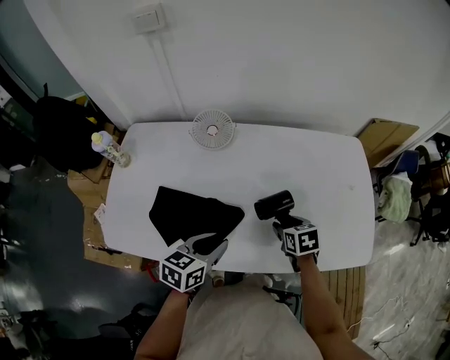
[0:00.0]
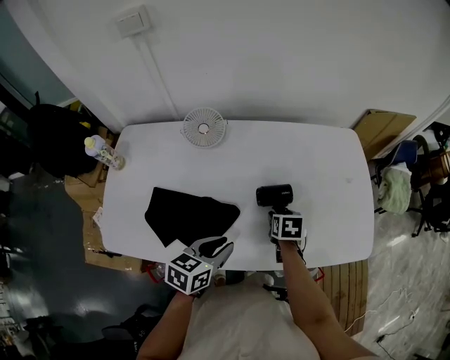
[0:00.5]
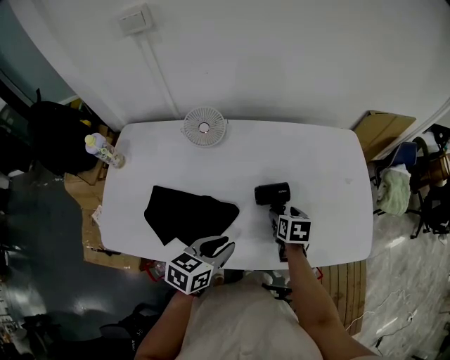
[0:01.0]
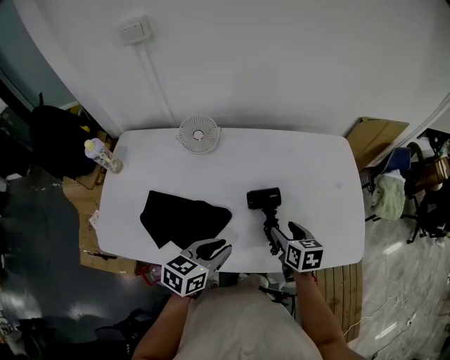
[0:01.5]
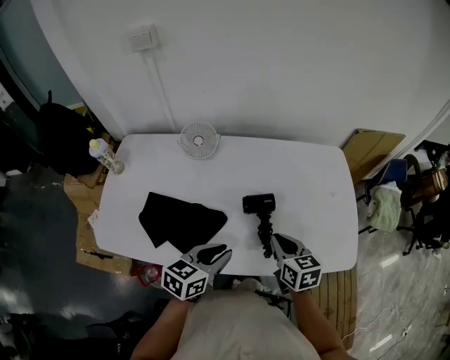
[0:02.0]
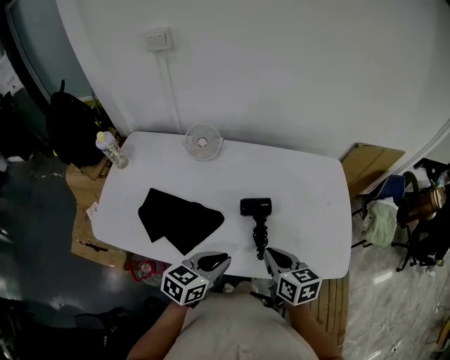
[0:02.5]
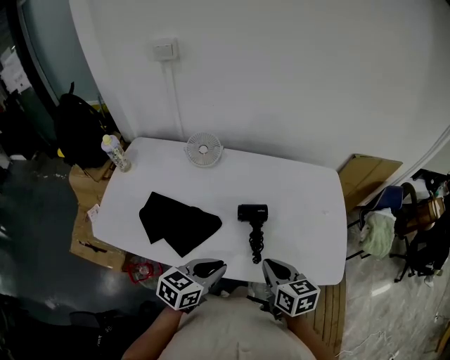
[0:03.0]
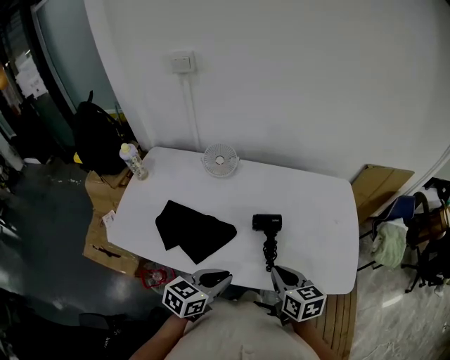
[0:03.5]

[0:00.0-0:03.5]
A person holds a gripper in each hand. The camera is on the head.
0:00.0 to 0:02.0: The right gripper travels upward by some 10 cm, turns by some 20 degrees, and closes up. The left gripper is displaced to the right by approximately 10 cm.
0:02.0 to 0:03.5: The two grippers go approximately 5 cm backward.

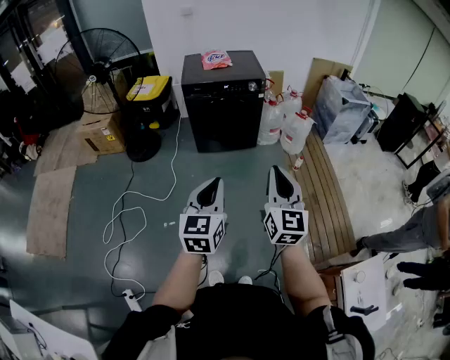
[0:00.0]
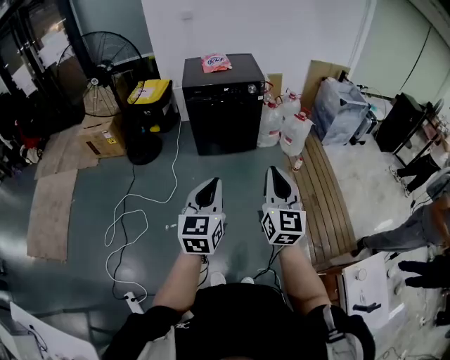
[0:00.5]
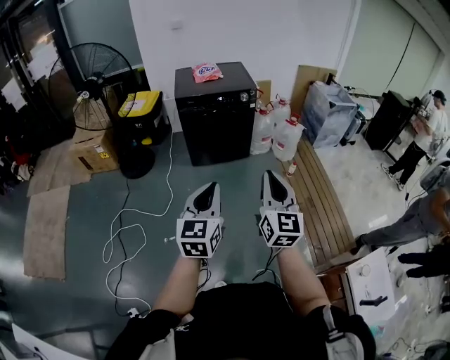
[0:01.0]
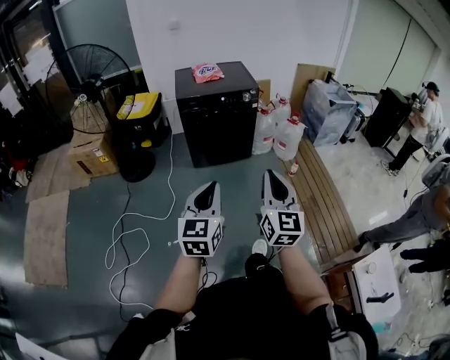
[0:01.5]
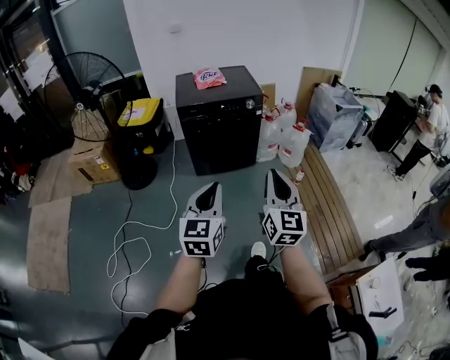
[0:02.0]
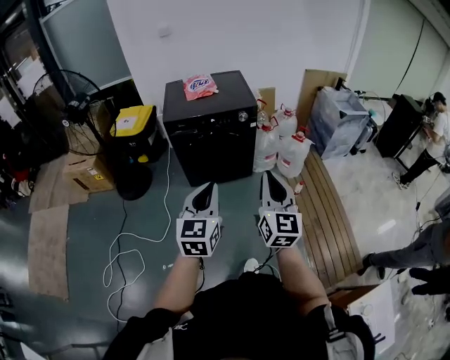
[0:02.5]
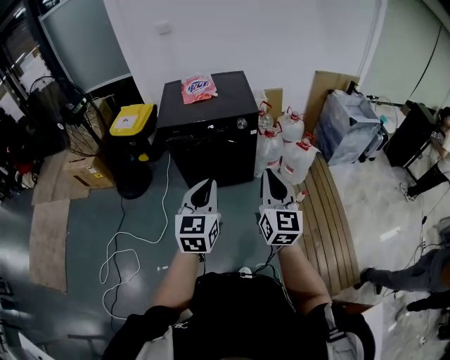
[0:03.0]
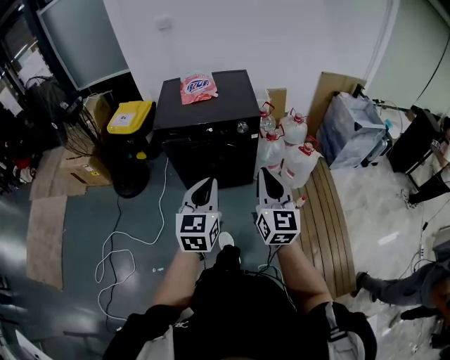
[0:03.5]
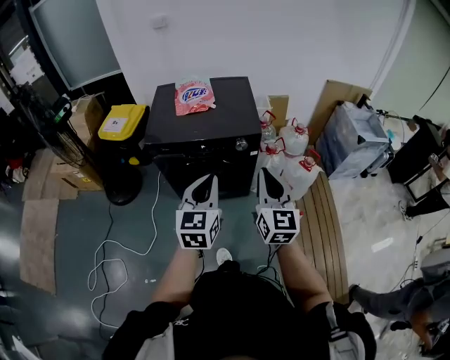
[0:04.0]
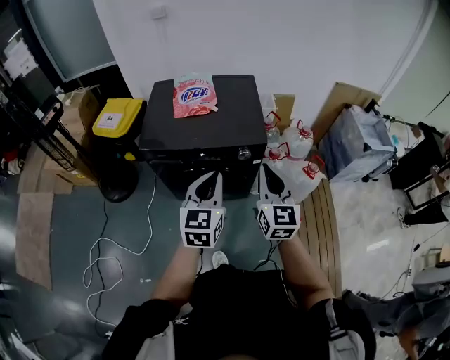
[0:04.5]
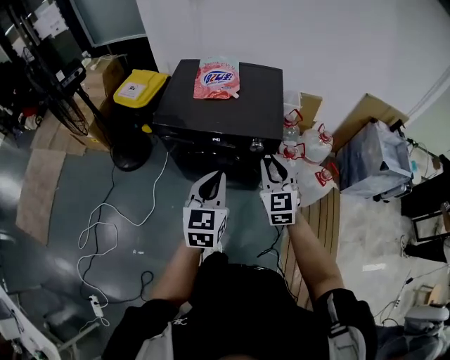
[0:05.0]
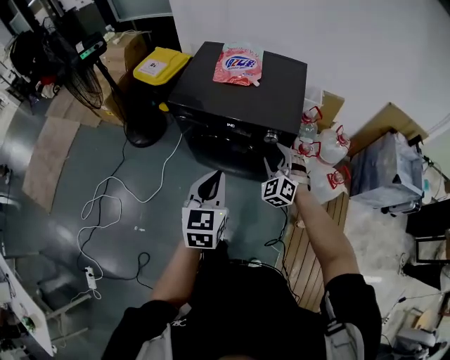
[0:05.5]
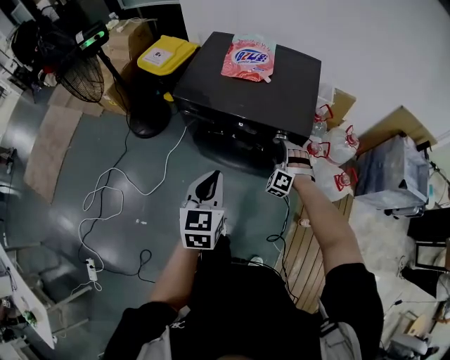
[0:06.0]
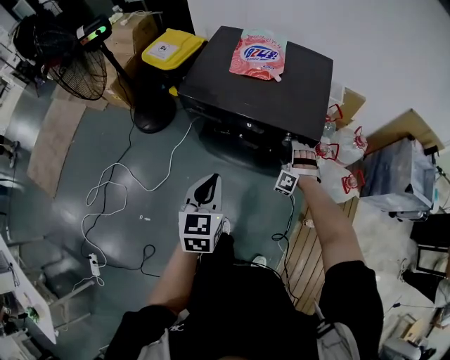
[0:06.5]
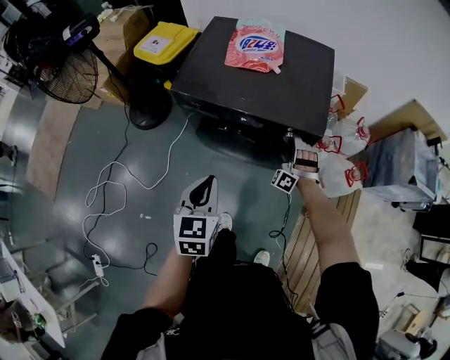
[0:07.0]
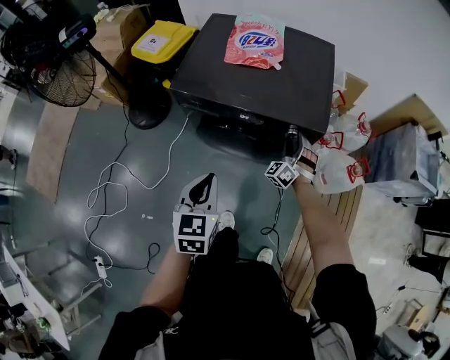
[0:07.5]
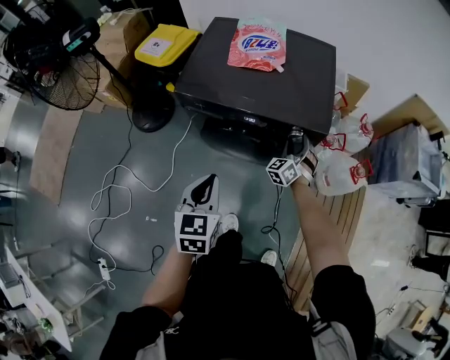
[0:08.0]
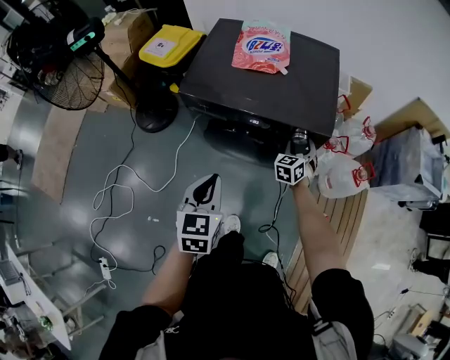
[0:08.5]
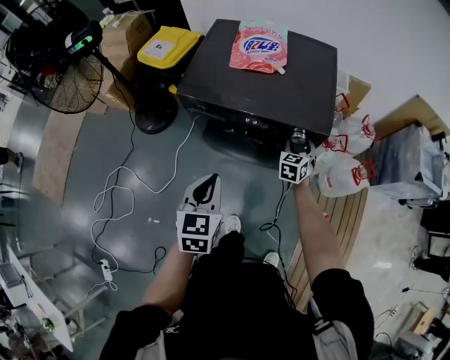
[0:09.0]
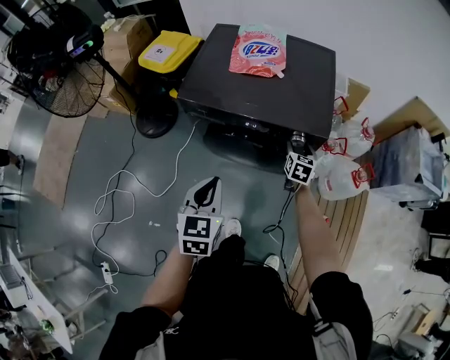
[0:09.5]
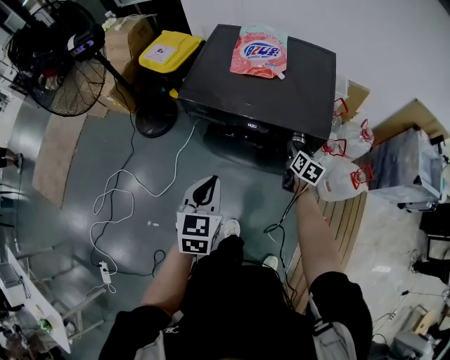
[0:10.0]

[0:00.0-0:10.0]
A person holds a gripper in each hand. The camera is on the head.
0:00.0 to 0:02.0: The grippers both shift forward and to the left by roughly 10 cm.
0:02.0 to 0:04.0: The two grippers travel together, forward, about 50 cm.
0:04.0 to 0:06.0: The left gripper shifts roughly 10 cm downward and forward, and rotates about 20 degrees; the right gripper shifts about 40 cm downward and forward, rolls counterclockwise, seen from behind, by some 90 degrees, and opens up.
0:06.0 to 0:08.0: The right gripper goes roughly 5 cm forward, and rotates around the line of its fingers by about 40 degrees, clockwise from behind. The left gripper goes some 5 cm to the left.
0:08.0 to 0:10.0: The right gripper twists roughly 70 degrees clockwise, seen from behind.

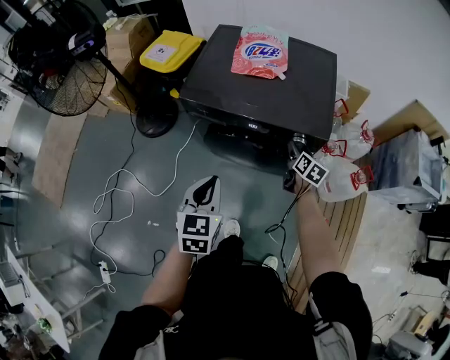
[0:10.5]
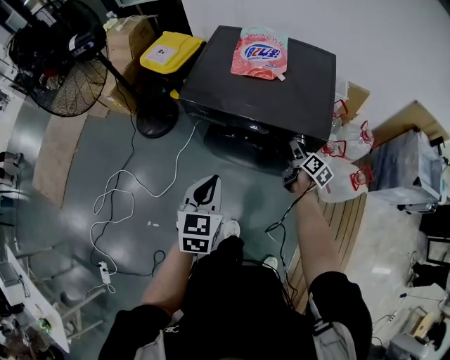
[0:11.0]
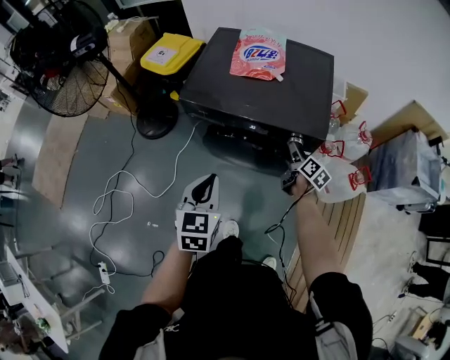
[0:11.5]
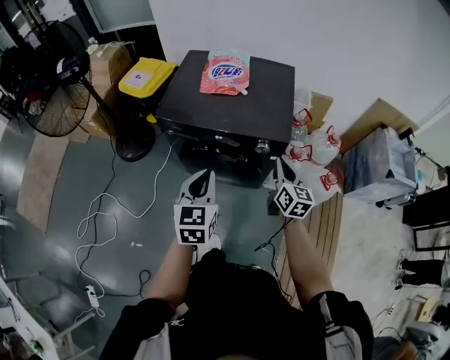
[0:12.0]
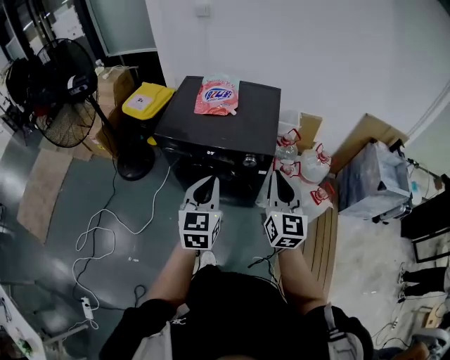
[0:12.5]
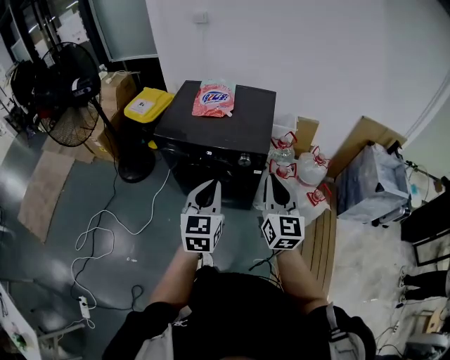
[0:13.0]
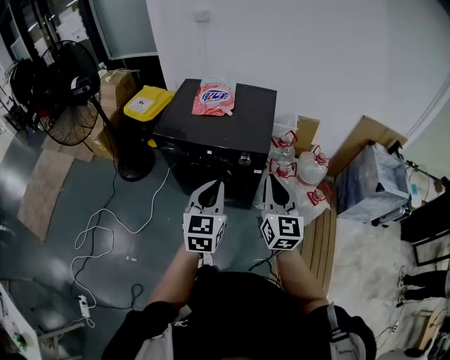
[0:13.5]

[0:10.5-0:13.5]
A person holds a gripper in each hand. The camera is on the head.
0:10.5 to 0:12.0: The right gripper travels upward and backward by about 20 cm, rotates roughly 20 degrees, and closes. The left gripper is displaced to the right and upward by approximately 10 cm.
0:12.0 to 0:13.5: The left gripper travels to the right, backward and upward by approximately 15 cm; the right gripper shifts approximately 20 cm upward and backward, and changes its angle by some 20 degrees.

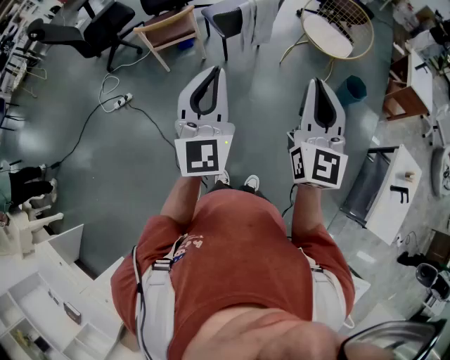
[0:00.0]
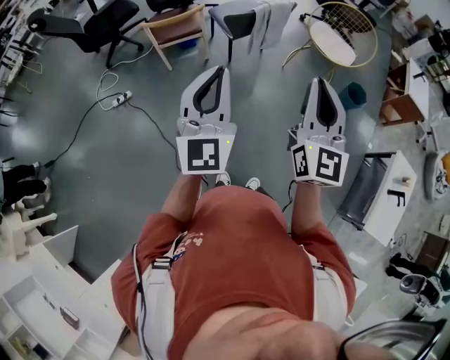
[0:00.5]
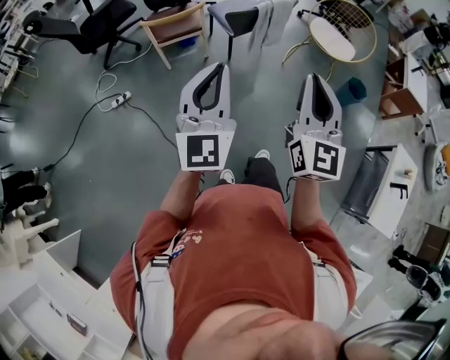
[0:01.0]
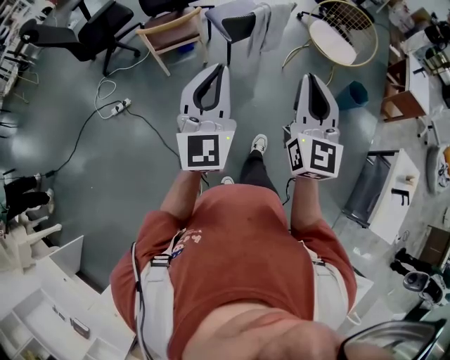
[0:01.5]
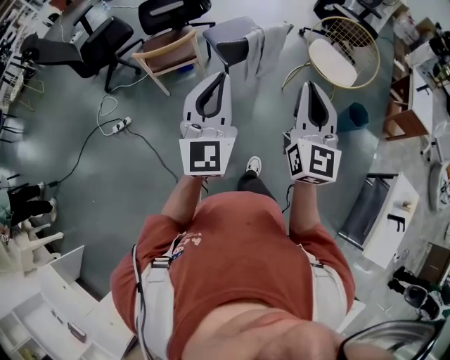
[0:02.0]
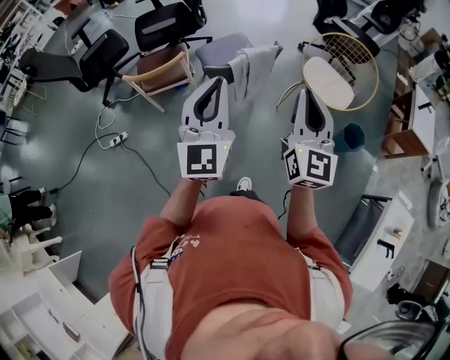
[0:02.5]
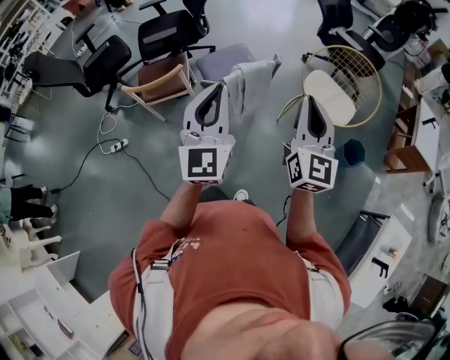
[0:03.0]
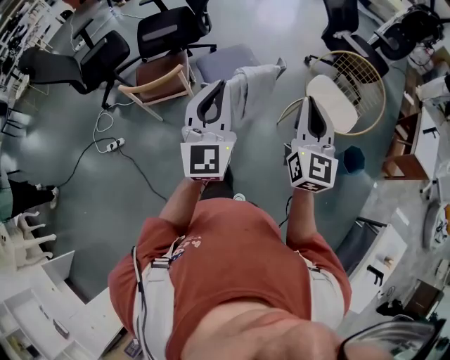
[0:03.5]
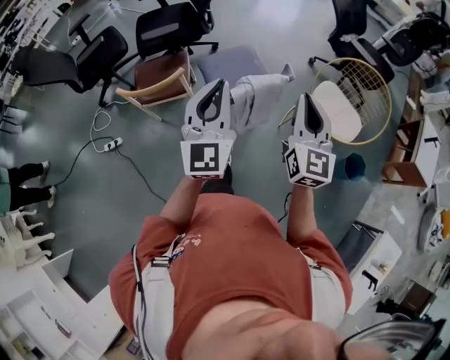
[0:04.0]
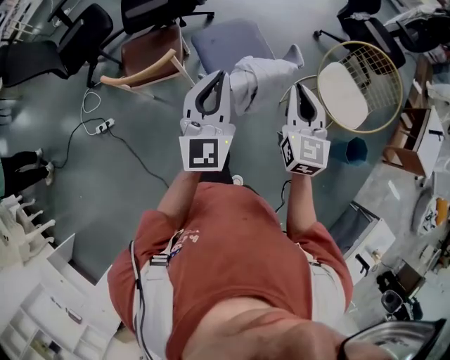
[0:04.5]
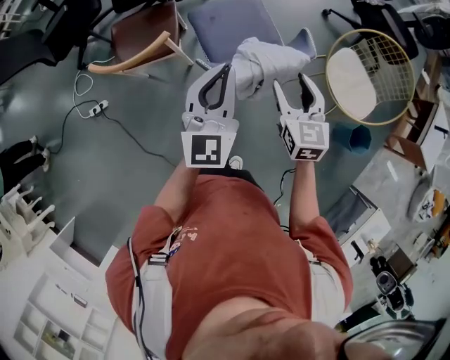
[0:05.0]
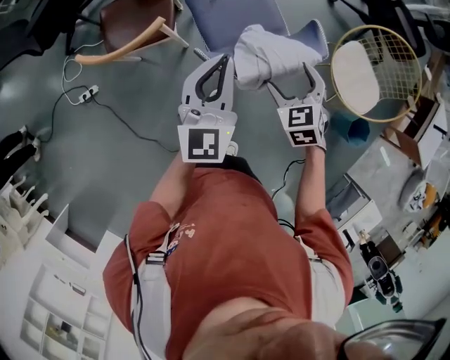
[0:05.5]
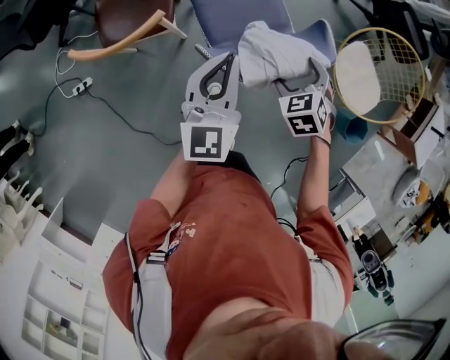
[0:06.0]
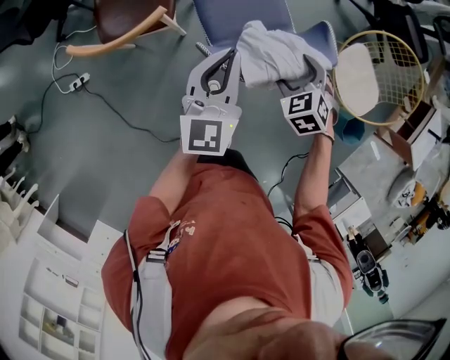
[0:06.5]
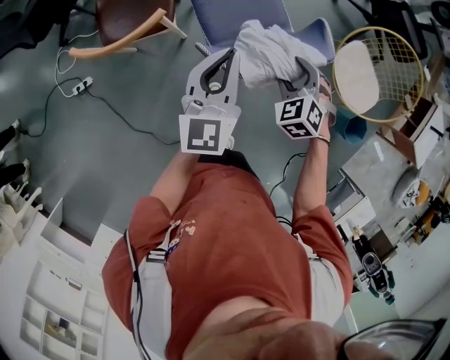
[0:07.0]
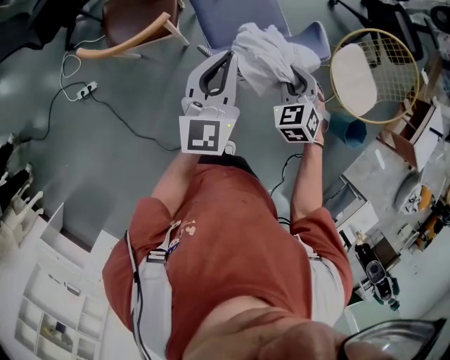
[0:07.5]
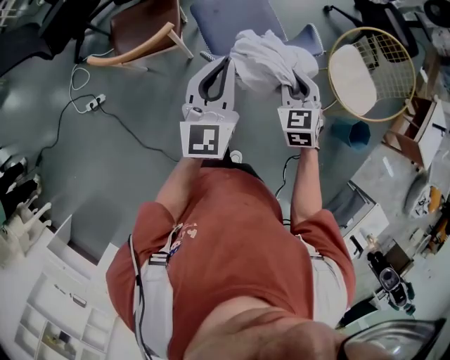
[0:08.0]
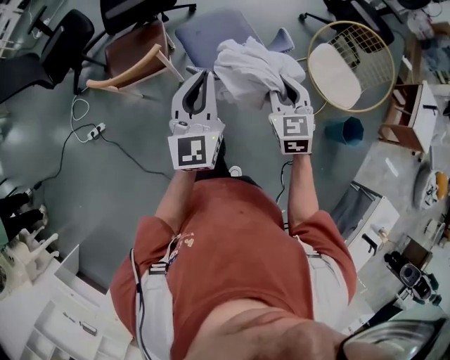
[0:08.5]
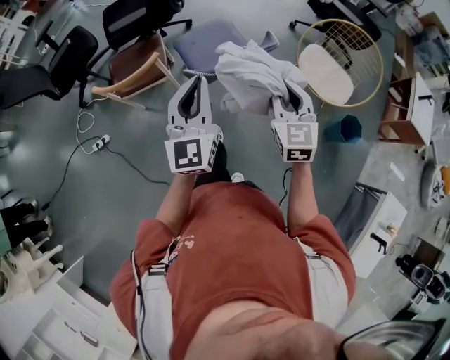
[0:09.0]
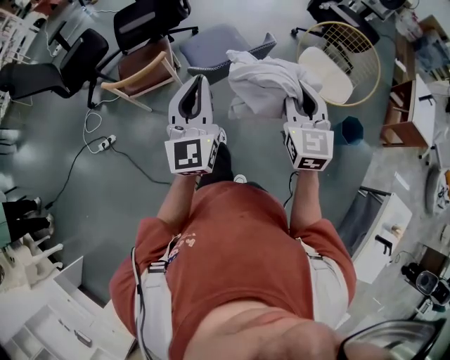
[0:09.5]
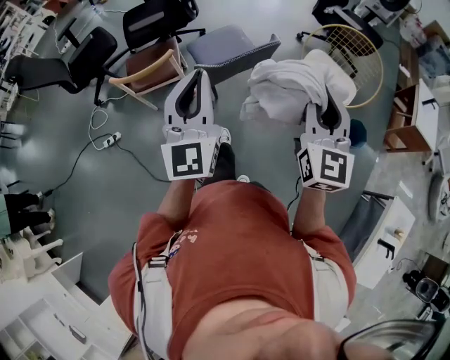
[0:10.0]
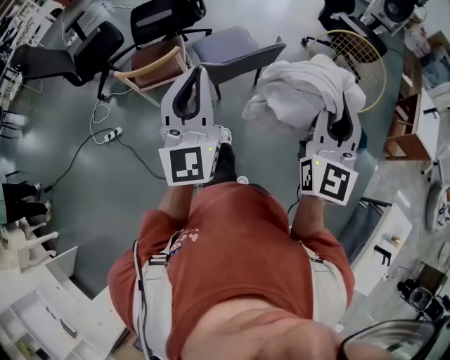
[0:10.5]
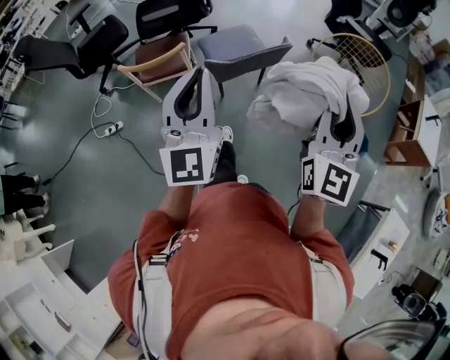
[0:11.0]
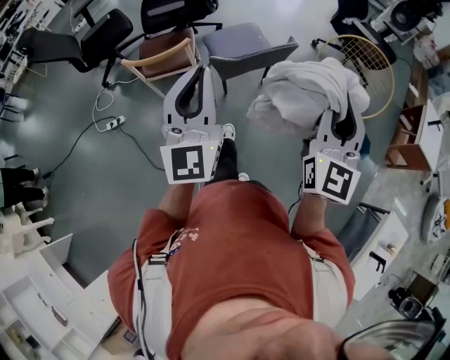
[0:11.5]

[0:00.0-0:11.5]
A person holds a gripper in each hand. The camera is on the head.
0:00.0 to 0:02.0: The grippers both shift forward by roughly 20 cm.
0:02.0 to 0:04.0: The two grippers go approximately 35 cm forward.
0:04.0 to 0:06.0: Both grippers move downward and forward, some 35 cm. The left gripper changes its angle by approximately 20 degrees, while the right gripper tips its fingers downward by about 60 degrees, and opens its fingers.
0:06.0 to 0:07.5: The right gripper closes.
0:07.5 to 0:09.5: The right gripper moves upward and backward, approximately 35 cm, and points its fingers roughly 40 degrees further upward. The left gripper shifts about 30 cm backward and upward.
0:09.5 to 0:11.5: The left gripper heads backward and upward, covering some 10 cm; the right gripper goes approximately 15 cm upward and backward, and turns by roughly 20 degrees.
